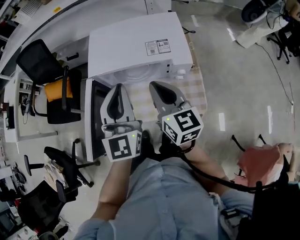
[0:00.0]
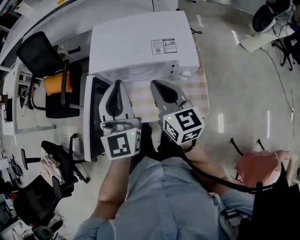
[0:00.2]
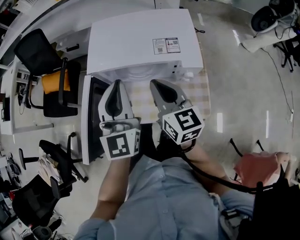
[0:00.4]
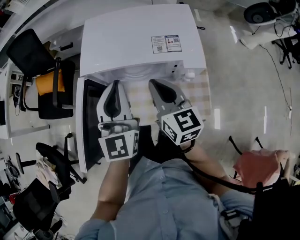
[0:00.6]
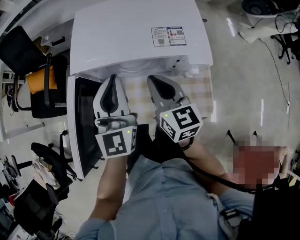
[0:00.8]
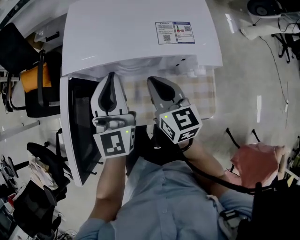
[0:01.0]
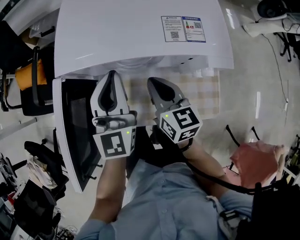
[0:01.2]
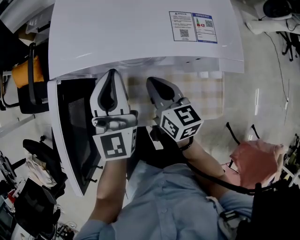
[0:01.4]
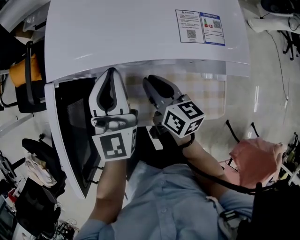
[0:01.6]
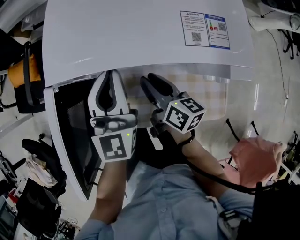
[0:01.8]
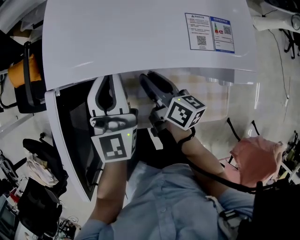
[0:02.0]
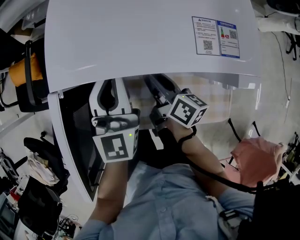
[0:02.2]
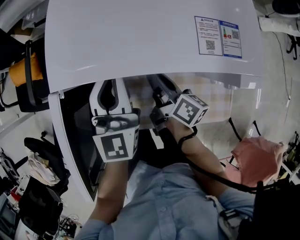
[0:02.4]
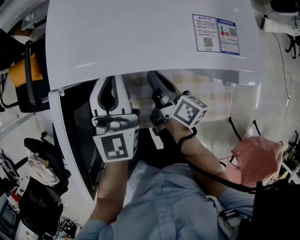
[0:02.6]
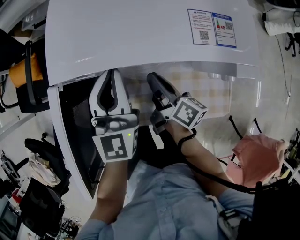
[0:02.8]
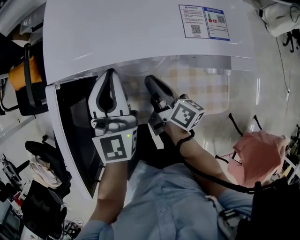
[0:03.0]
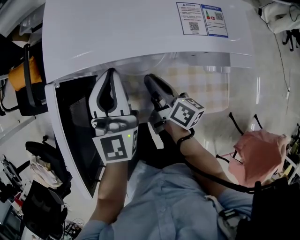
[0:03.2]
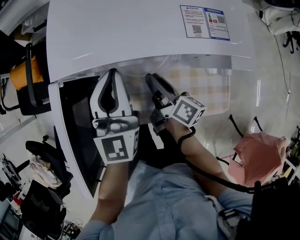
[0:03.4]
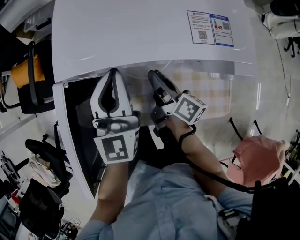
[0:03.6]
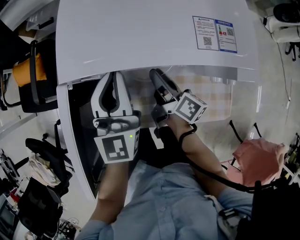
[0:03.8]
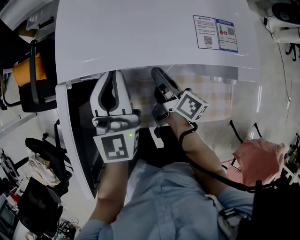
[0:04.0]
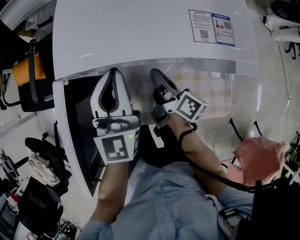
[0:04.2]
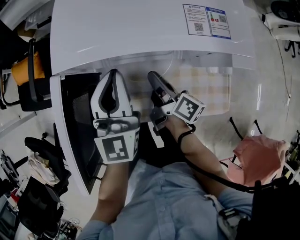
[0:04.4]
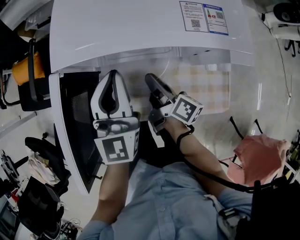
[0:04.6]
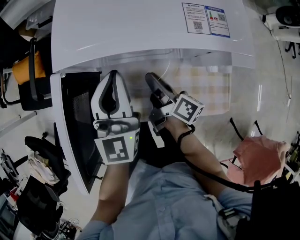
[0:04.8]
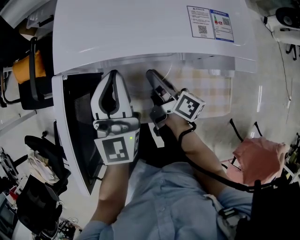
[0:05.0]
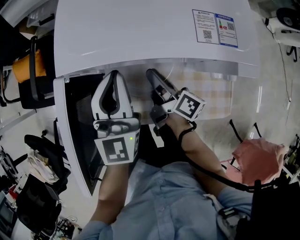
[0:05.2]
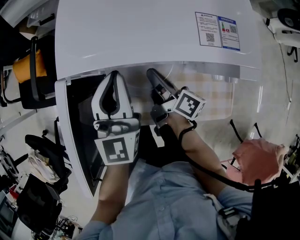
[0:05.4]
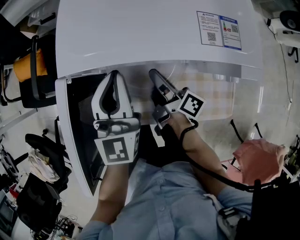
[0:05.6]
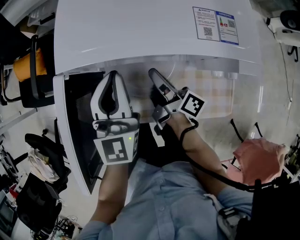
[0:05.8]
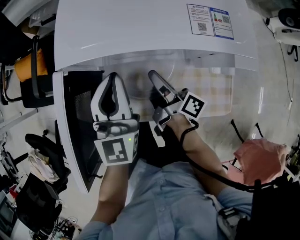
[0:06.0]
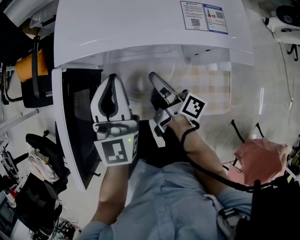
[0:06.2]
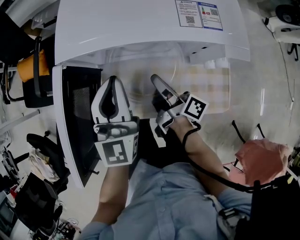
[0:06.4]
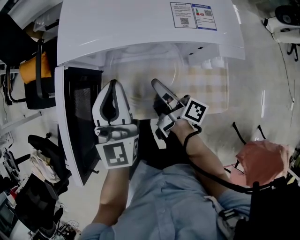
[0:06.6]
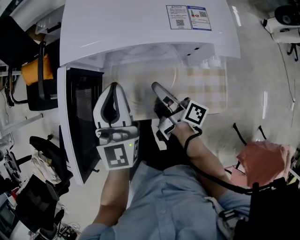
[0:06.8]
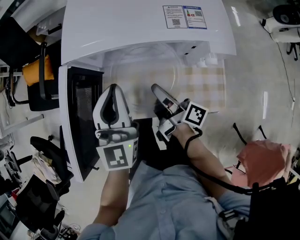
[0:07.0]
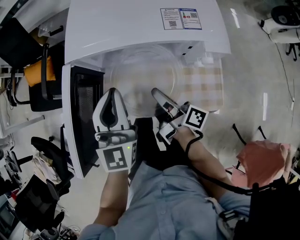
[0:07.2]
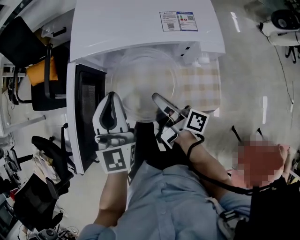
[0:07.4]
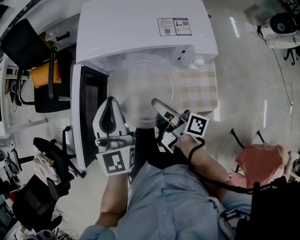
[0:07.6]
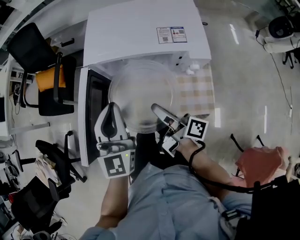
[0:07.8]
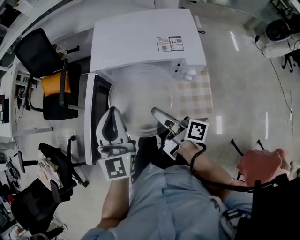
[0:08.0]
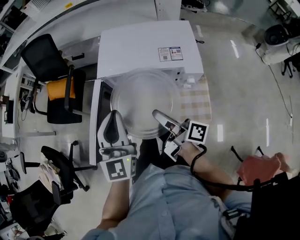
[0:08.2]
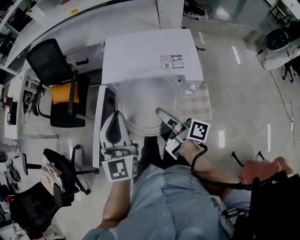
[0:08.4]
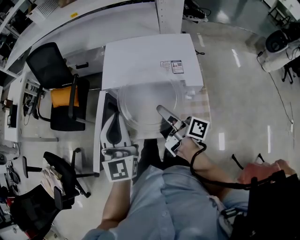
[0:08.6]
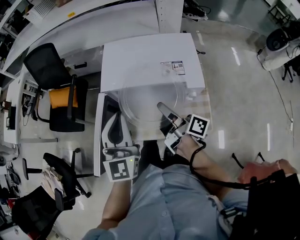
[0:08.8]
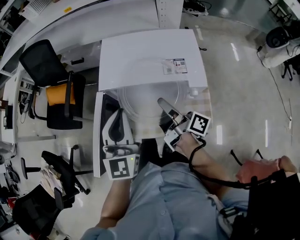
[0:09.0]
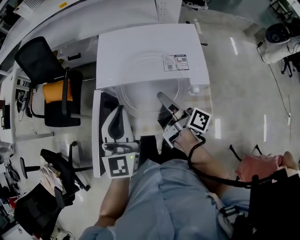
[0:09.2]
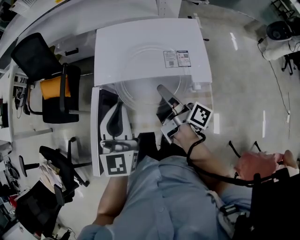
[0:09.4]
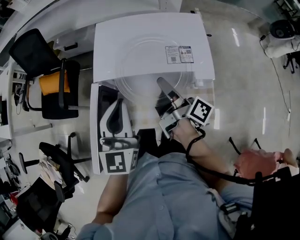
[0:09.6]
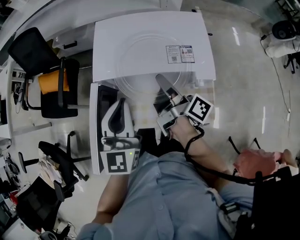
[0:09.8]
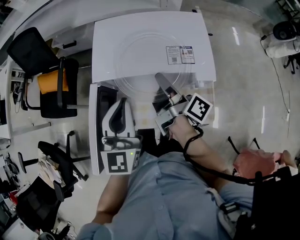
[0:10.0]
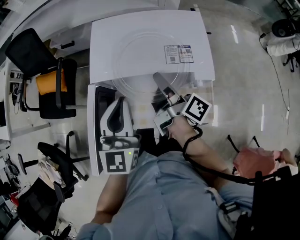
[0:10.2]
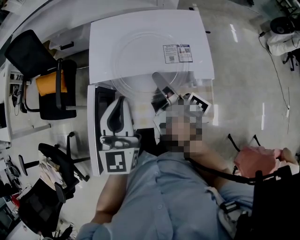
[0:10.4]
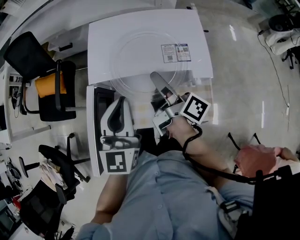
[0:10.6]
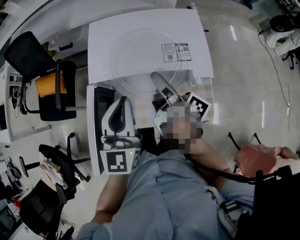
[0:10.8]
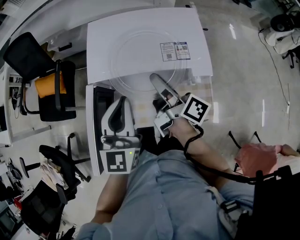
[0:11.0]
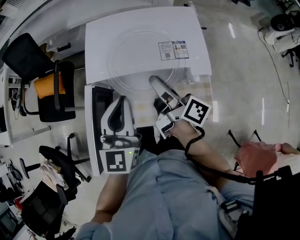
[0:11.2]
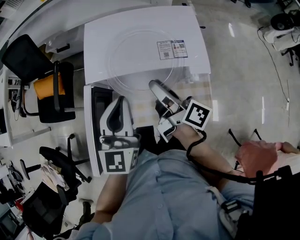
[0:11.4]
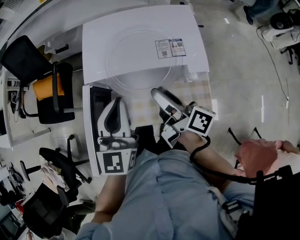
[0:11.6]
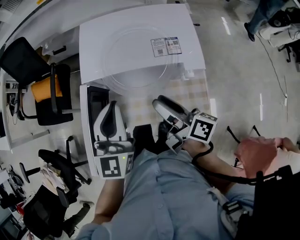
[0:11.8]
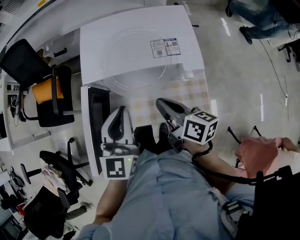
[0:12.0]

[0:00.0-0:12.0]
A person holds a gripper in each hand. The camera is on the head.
0:00.0 to 0:01.6: The left gripper moves downward and forward, some 20 cm. Meanwhile the right gripper travels downward by about 25 cm, and swivels approximately 30 degrees.
0:01.6 to 0:03.0: The right gripper rotates about 30 degrees.
0:03.0 to 0:06.0: The grippers make only small movements.
0:06.0 to 0:07.6: The two grippers go some 15 cm backward and upward.
0:07.6 to 0:09.0: The left gripper moves upward, approximately 10 cm; the right gripper heads upward and forward, covering roughly 10 cm.
0:09.0 to 0:10.4: The right gripper shifts approximately 5 cm forward.
0:10.4 to 0:12.0: The right gripper travels backward by about 10 cm, changes its angle by some 40 degrees, and opens, then closes again.

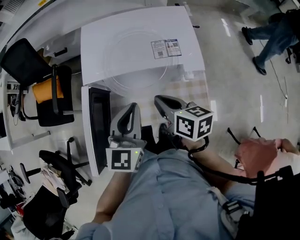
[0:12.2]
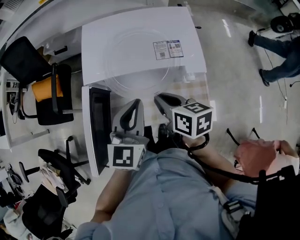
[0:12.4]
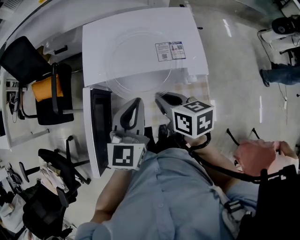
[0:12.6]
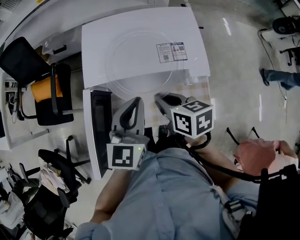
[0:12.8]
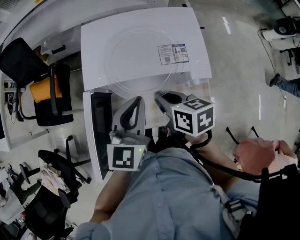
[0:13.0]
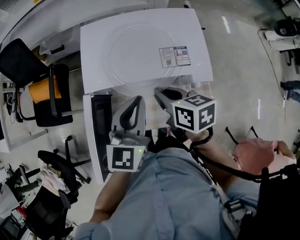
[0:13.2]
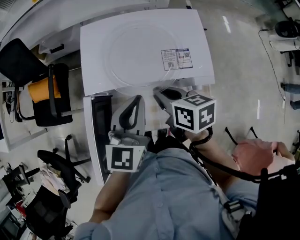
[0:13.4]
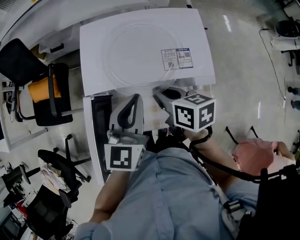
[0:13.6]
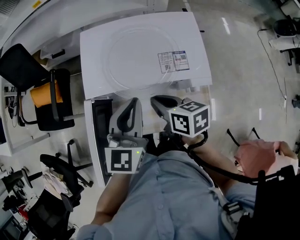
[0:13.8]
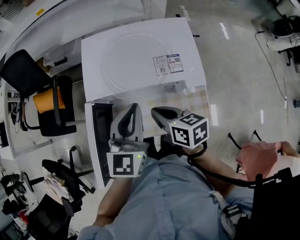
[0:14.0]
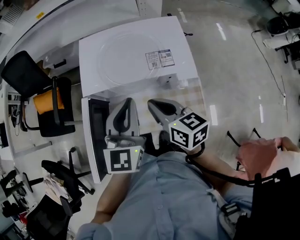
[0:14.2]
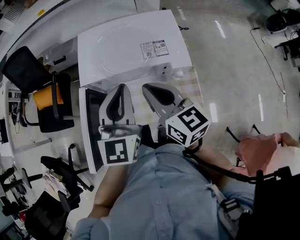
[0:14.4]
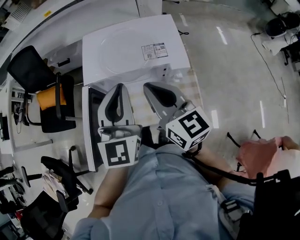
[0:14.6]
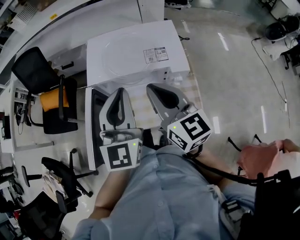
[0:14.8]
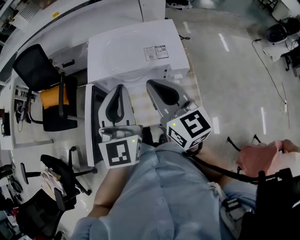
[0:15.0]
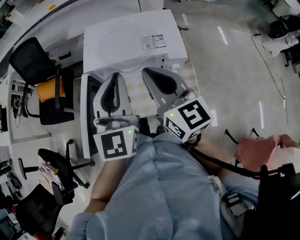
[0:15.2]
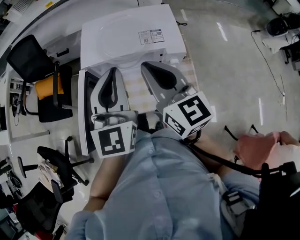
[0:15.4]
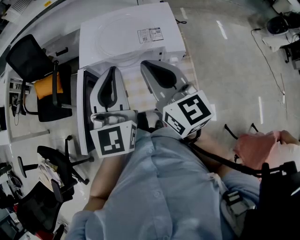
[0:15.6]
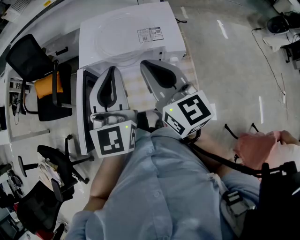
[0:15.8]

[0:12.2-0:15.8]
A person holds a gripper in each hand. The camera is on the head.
0:12.2 to 0:14.0: The left gripper changes place by some 5 cm. Meanwhile the right gripper reaches some 10 cm forward, then returns.
0:14.0 to 0:15.8: The left gripper goes some 10 cm upward and backward, while the right gripper travels upward by some 20 cm, and angles its fingers upward, by about 30 degrees.

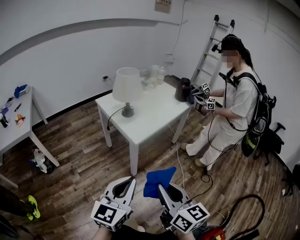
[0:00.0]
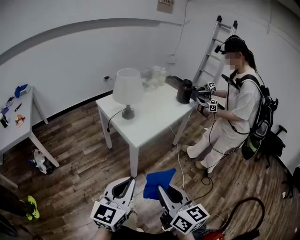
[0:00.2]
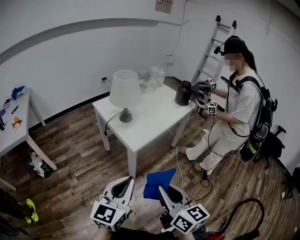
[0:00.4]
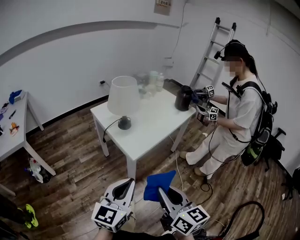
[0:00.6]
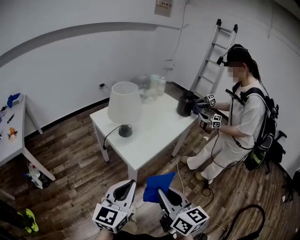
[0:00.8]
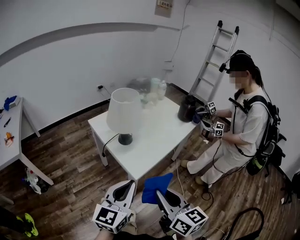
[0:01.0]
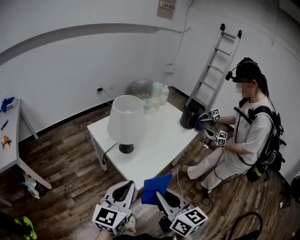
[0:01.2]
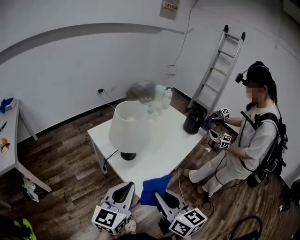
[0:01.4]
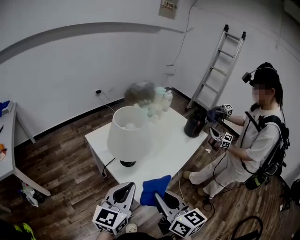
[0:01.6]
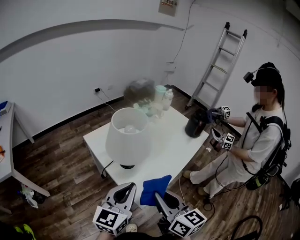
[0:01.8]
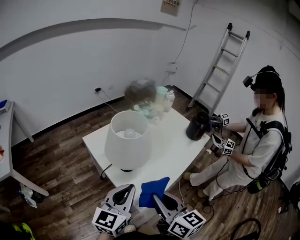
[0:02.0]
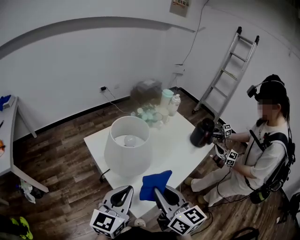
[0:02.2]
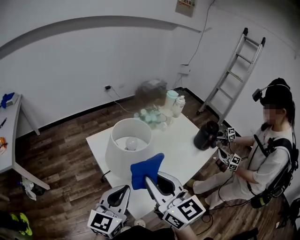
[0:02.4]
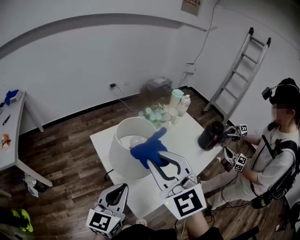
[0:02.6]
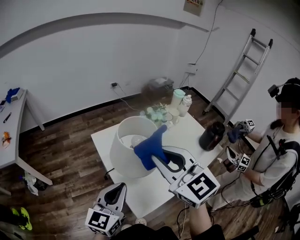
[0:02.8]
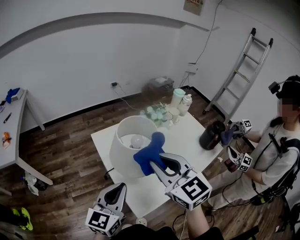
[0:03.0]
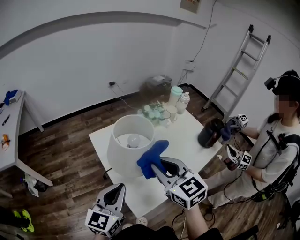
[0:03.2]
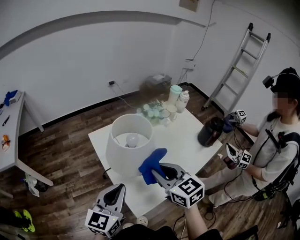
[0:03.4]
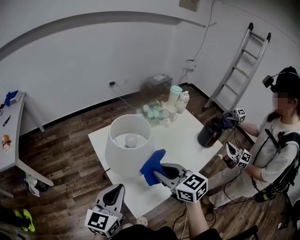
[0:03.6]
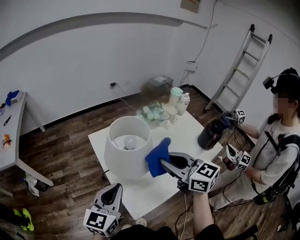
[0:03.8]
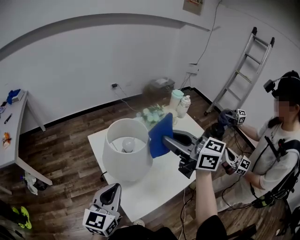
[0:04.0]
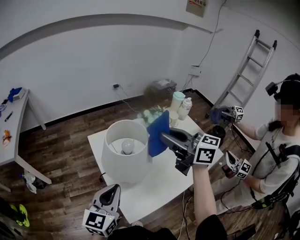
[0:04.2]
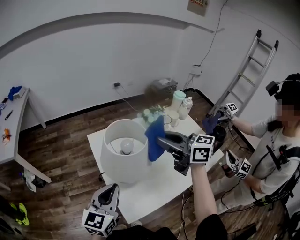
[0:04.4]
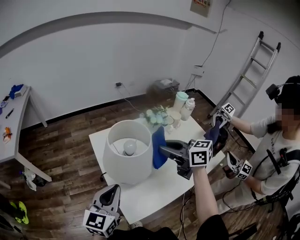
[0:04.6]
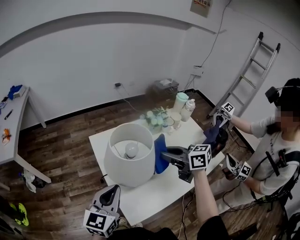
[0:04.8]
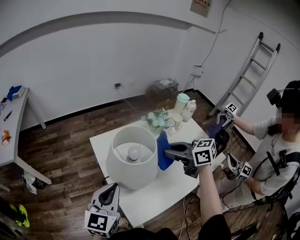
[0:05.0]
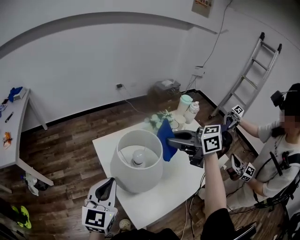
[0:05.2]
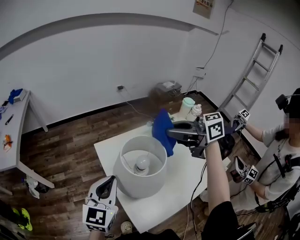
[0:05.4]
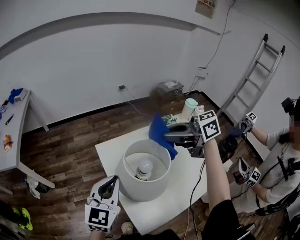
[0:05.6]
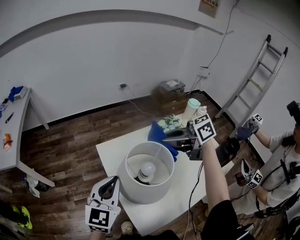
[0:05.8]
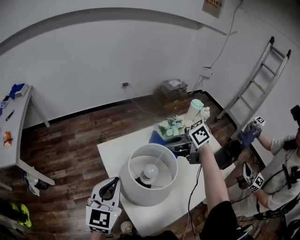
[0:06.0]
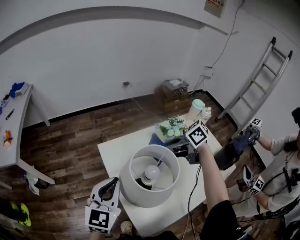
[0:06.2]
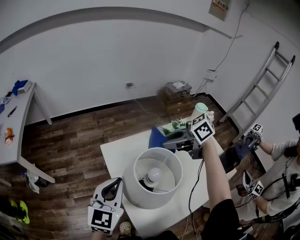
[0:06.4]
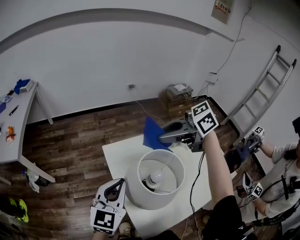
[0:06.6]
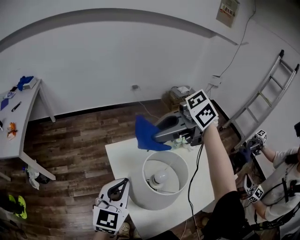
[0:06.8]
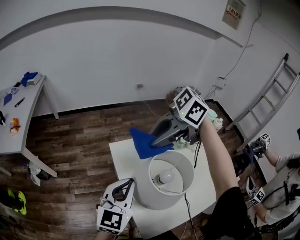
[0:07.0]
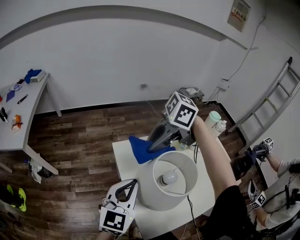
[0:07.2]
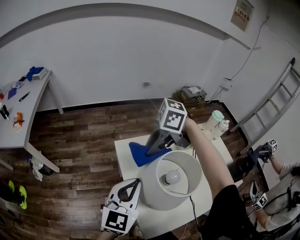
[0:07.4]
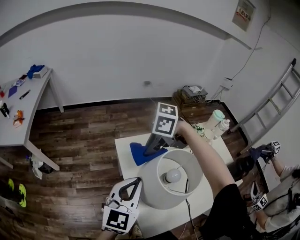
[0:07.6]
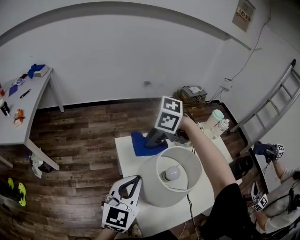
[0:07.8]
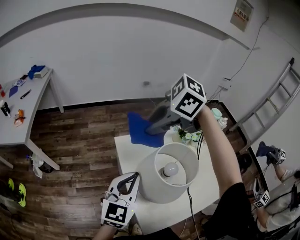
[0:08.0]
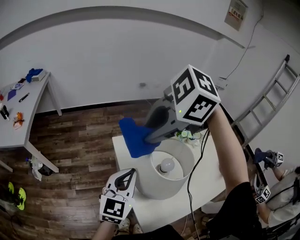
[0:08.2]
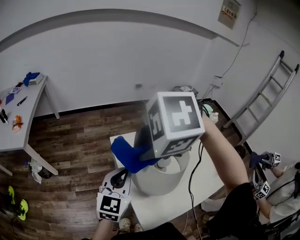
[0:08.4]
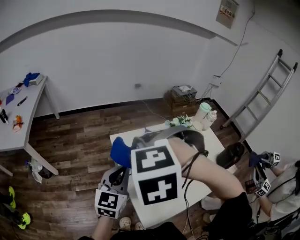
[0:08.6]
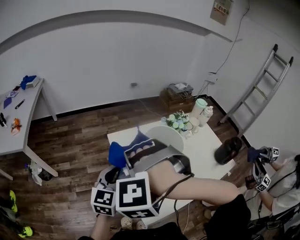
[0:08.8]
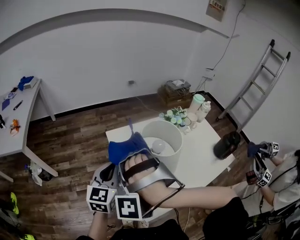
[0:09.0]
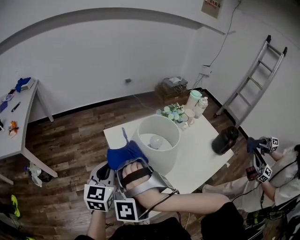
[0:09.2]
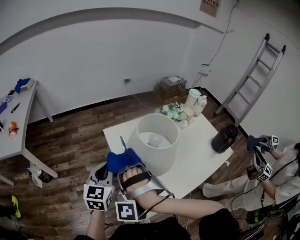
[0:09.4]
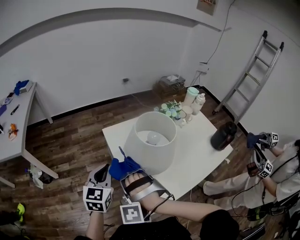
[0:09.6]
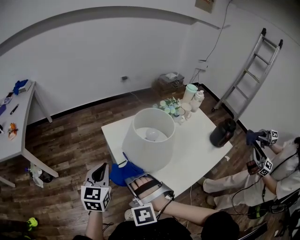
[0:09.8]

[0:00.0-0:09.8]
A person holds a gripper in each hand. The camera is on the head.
0:00.0 to 0:01.4: Both grippers travel together forward, some 30 cm.
0:01.4 to 0:02.8: The right gripper shifts roughly 25 cm forward and upward, and changes its angle by approximately 40 degrees. Meanwhile the left gripper heads forward, covering some 15 cm.
0:02.8 to 0:04.2: The right gripper is displaced forward and to the right by roughly 15 cm, goes downward and returns, roughly 15 cm each way, and turns by about 40 degrees.
0:04.2 to 0:05.6: The two grippers go some 10 cm forward. The right gripper reaches about 15 cm downward, then returns, and turns by some 30 degrees.
0:05.6 to 0:07.0: The right gripper reaches approximately 10 cm downward, then returns, and rotates about 40 degrees.
0:07.0 to 0:08.4: The right gripper reaches some 15 cm downward, then returns, and angles its fingers downward, by roughly 40 degrees.
0:08.4 to 0:09.8: The right gripper moves downward, roughly 25 cm, and tips its fingers upward by roughly 40 degrees. Meanwhile the left gripper travels downward by some 10 cm.
